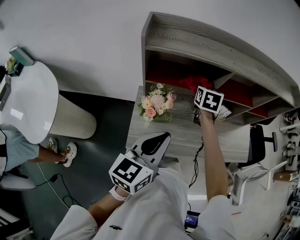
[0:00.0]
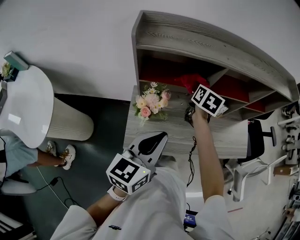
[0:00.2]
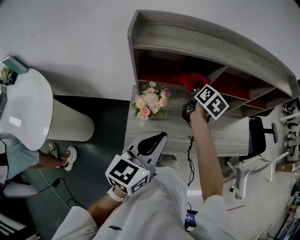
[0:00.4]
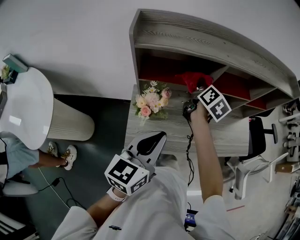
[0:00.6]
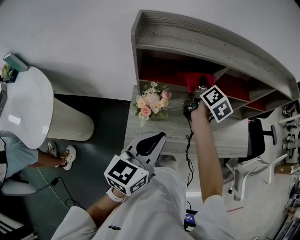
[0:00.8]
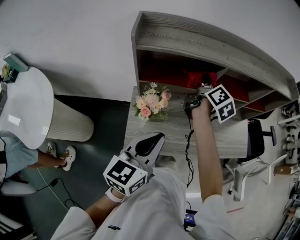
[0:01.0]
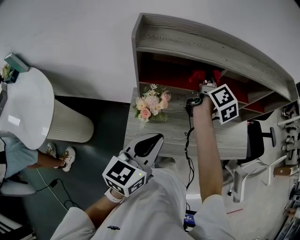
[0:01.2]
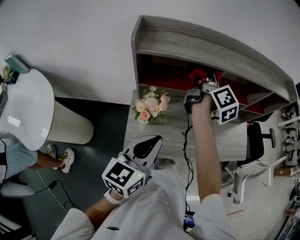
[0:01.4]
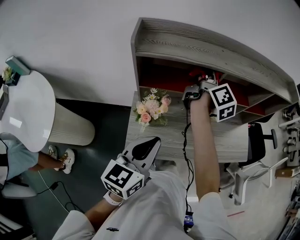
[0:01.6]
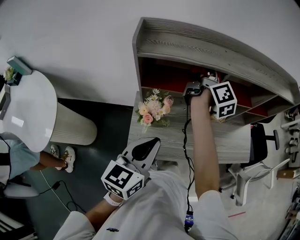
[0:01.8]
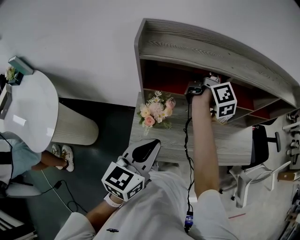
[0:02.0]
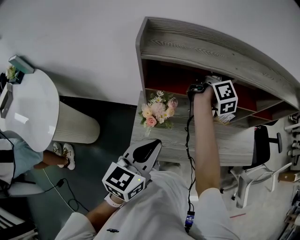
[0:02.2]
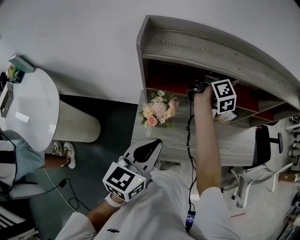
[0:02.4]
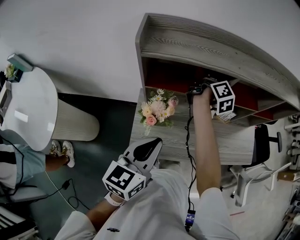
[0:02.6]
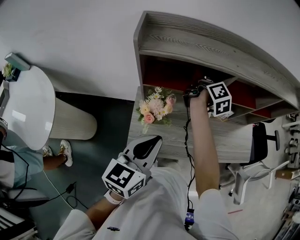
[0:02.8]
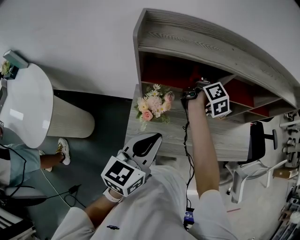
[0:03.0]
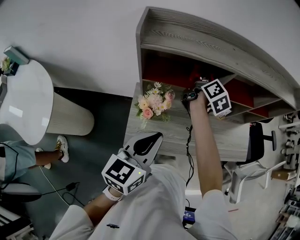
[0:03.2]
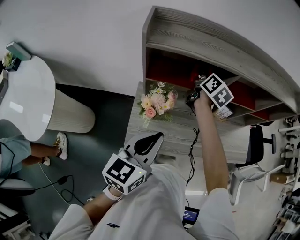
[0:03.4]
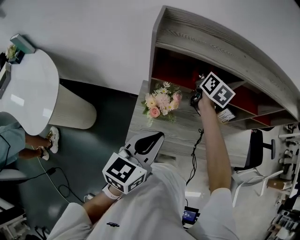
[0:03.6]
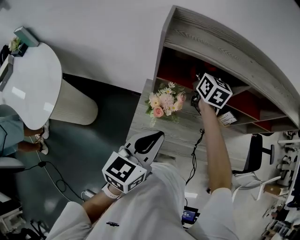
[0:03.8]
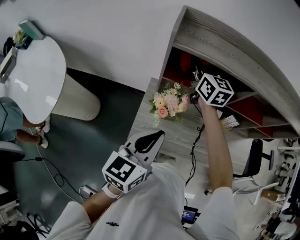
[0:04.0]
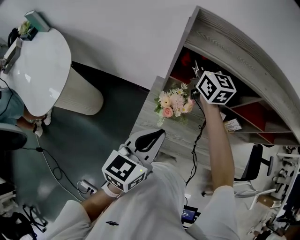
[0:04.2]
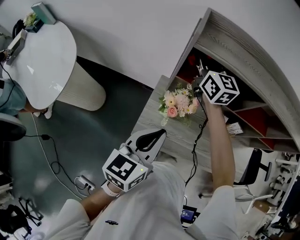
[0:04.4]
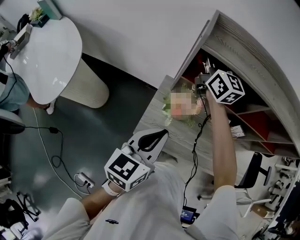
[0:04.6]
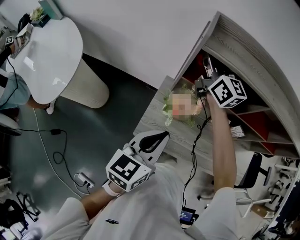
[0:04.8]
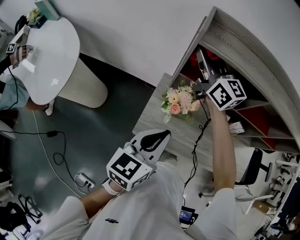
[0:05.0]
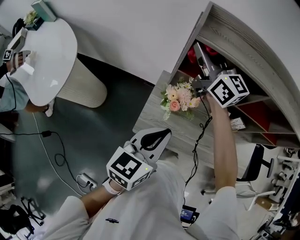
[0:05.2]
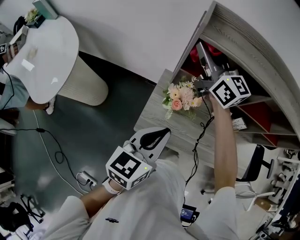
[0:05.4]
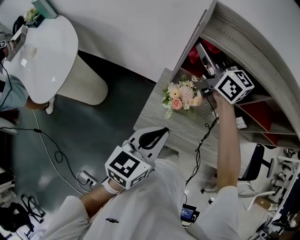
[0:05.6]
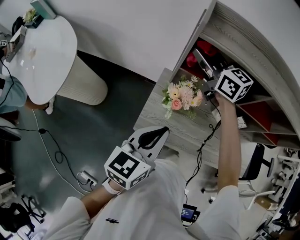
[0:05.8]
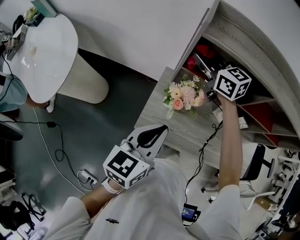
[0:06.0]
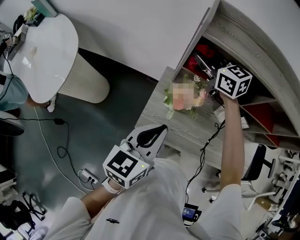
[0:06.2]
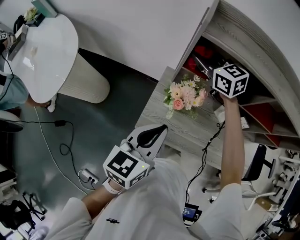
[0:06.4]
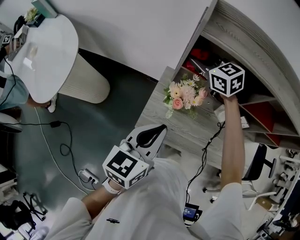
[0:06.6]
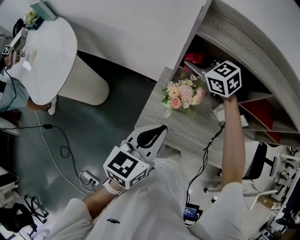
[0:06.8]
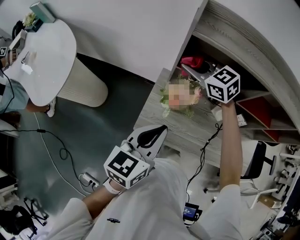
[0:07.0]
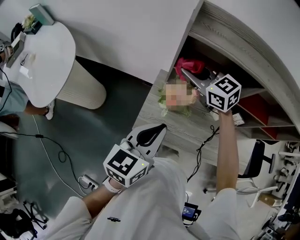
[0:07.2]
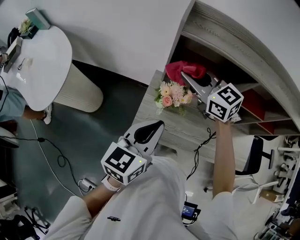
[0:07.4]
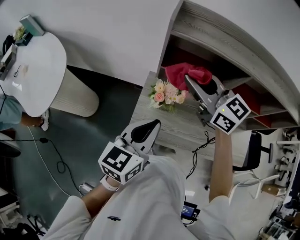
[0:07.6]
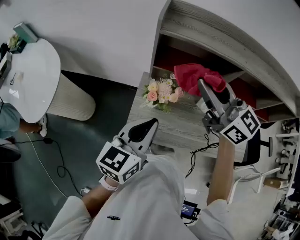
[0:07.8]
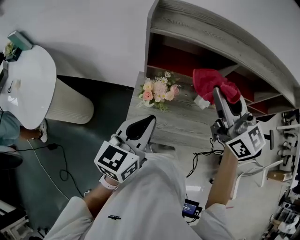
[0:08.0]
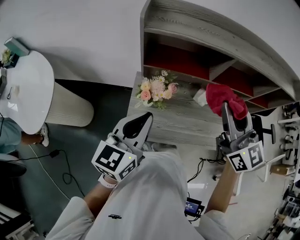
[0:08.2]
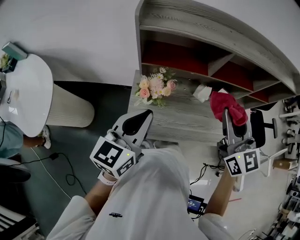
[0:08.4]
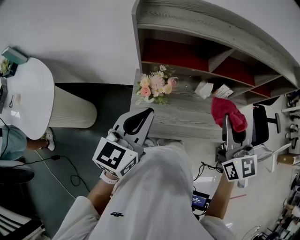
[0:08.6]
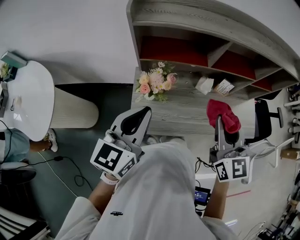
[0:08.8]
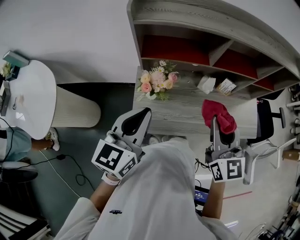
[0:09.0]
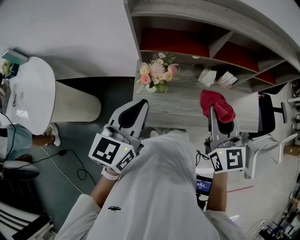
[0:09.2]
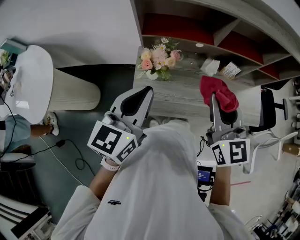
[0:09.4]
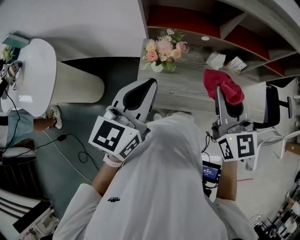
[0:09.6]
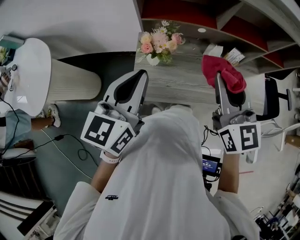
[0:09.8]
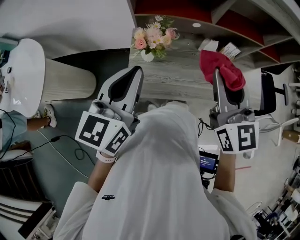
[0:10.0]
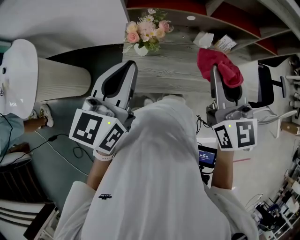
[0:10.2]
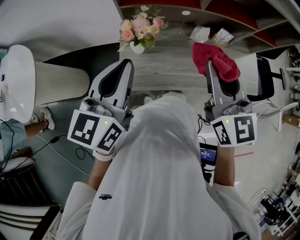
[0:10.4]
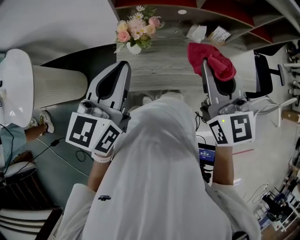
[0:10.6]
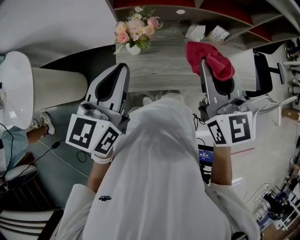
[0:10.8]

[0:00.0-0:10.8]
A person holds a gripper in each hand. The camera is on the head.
0.0 to 1.6 s: The right gripper moves upward, approximately 15 cm, and twists about 60 degrees clockwise, seen from behind.
1.6 to 3.0 s: The right gripper is displaced downward by some 10 cm.
3.0 to 4.6 s: The left gripper shifts by roughly 5 cm. Meanwhile the right gripper changes place by roughly 30 cm, and turns by roughly 70 degrees.
4.6 to 6.2 s: The right gripper travels downward by some 10 cm, and changes its angle by approximately 30 degrees.
6.2 to 7.8 s: The right gripper is displaced backward and upward by about 25 cm, and swivels about 20 degrees.
7.8 to 9.2 s: The right gripper heads backward, to the right and downward, covering approximately 20 cm, and changes its angle by about 40 degrees.
9.2 to 10.8 s: There are only small adjustments of the grippers.

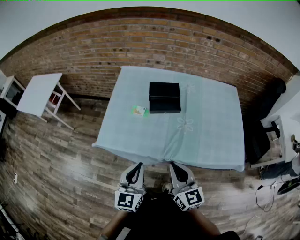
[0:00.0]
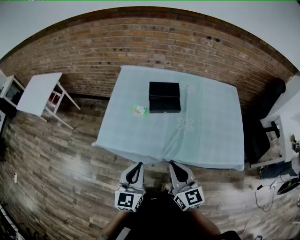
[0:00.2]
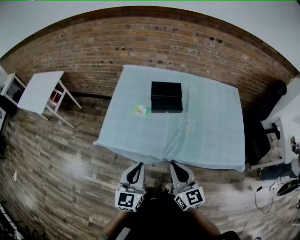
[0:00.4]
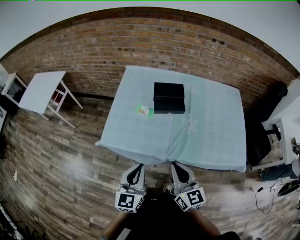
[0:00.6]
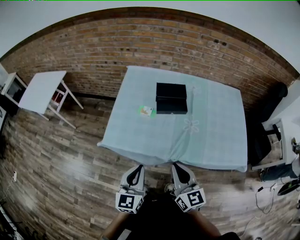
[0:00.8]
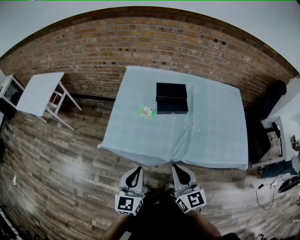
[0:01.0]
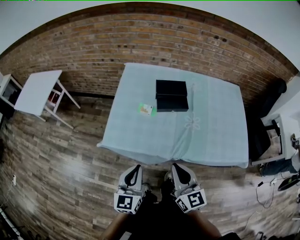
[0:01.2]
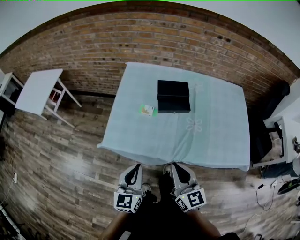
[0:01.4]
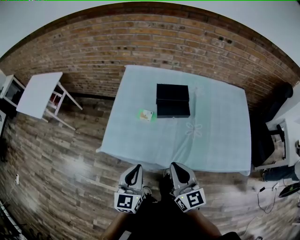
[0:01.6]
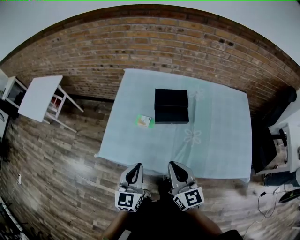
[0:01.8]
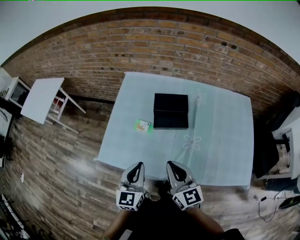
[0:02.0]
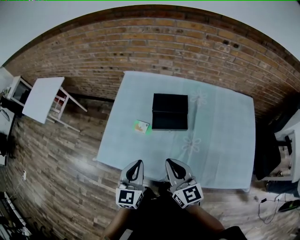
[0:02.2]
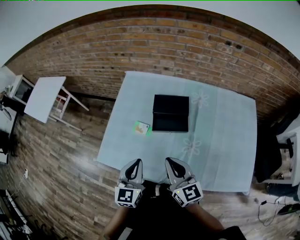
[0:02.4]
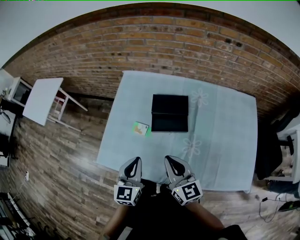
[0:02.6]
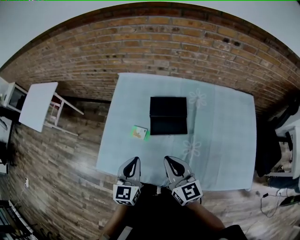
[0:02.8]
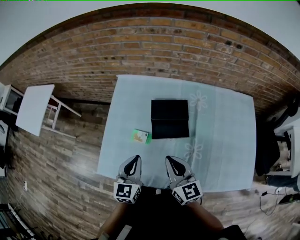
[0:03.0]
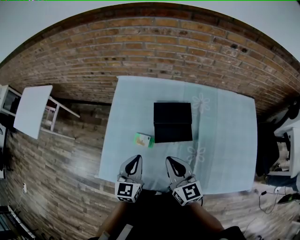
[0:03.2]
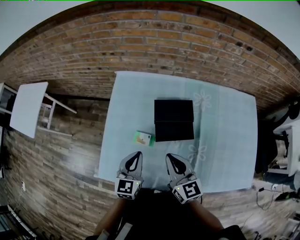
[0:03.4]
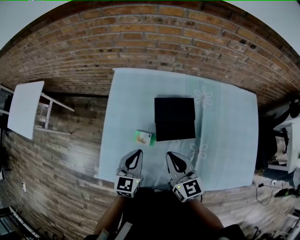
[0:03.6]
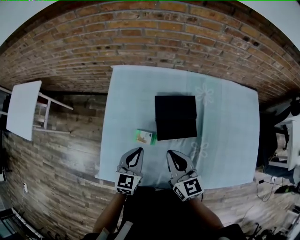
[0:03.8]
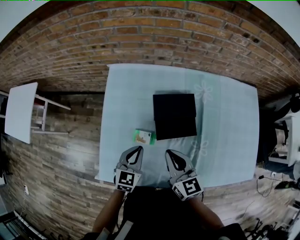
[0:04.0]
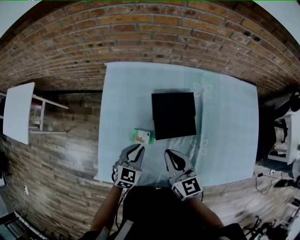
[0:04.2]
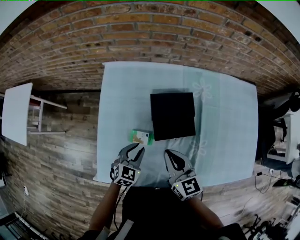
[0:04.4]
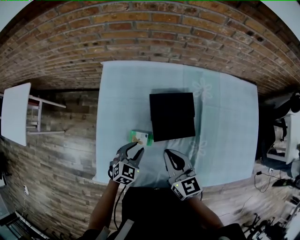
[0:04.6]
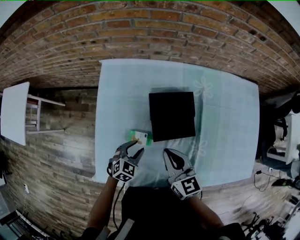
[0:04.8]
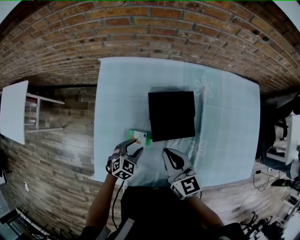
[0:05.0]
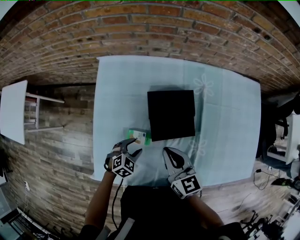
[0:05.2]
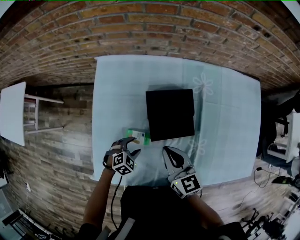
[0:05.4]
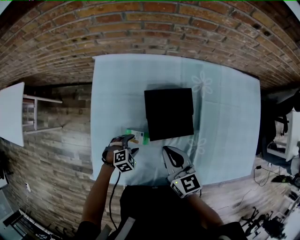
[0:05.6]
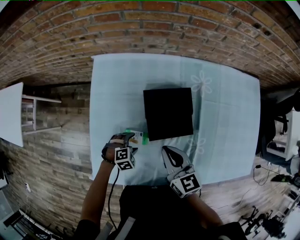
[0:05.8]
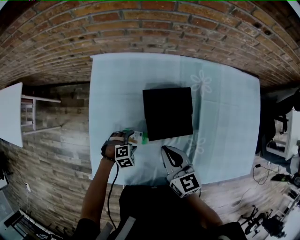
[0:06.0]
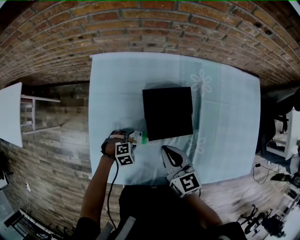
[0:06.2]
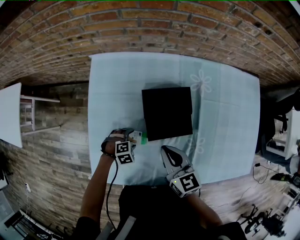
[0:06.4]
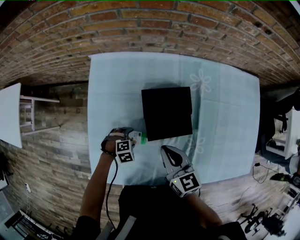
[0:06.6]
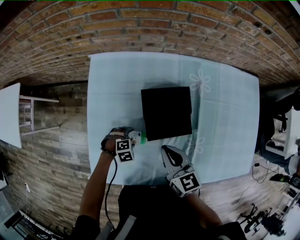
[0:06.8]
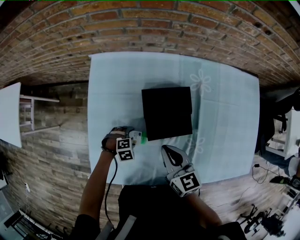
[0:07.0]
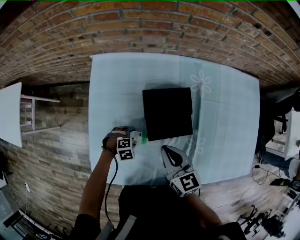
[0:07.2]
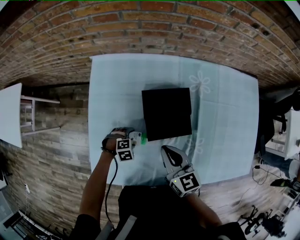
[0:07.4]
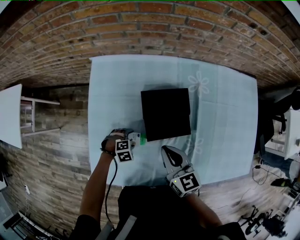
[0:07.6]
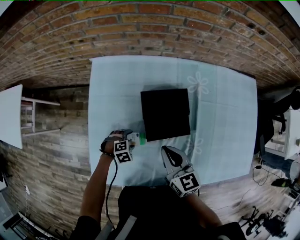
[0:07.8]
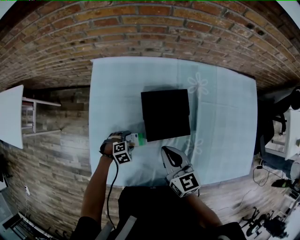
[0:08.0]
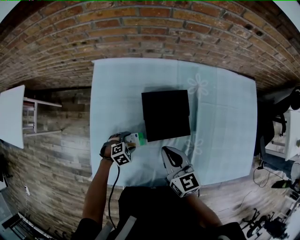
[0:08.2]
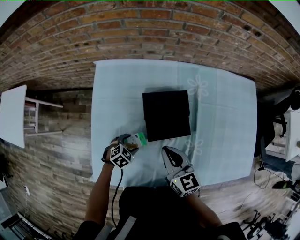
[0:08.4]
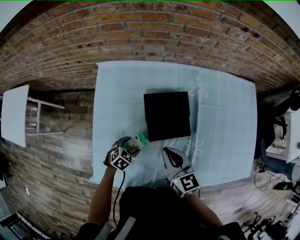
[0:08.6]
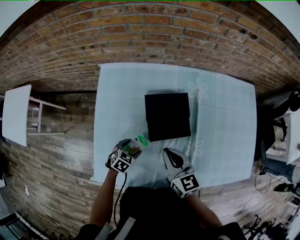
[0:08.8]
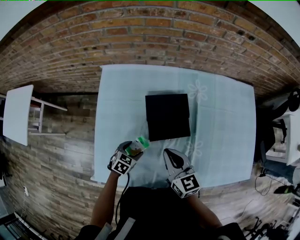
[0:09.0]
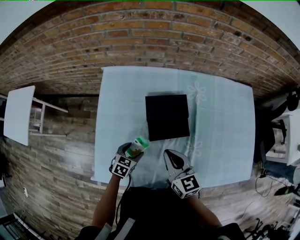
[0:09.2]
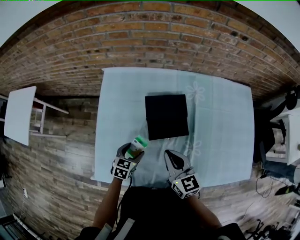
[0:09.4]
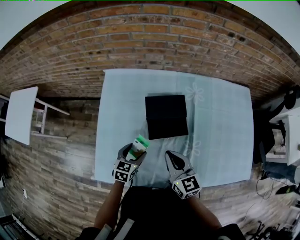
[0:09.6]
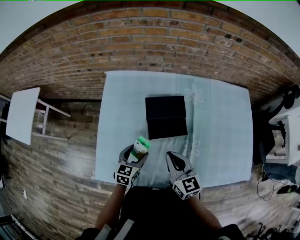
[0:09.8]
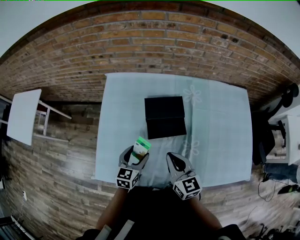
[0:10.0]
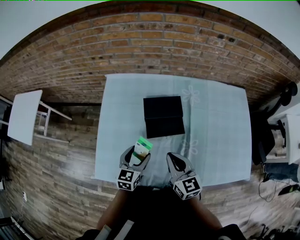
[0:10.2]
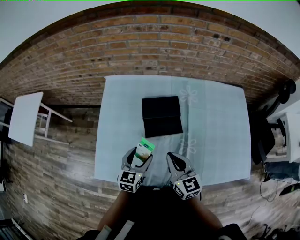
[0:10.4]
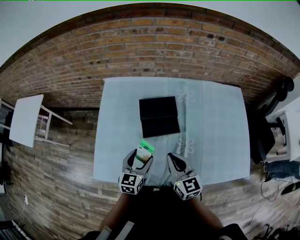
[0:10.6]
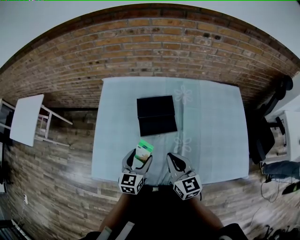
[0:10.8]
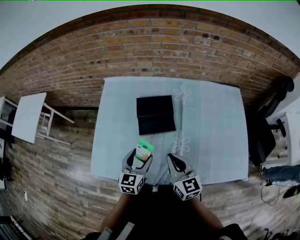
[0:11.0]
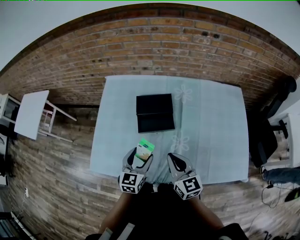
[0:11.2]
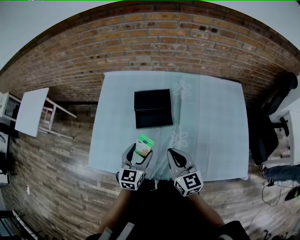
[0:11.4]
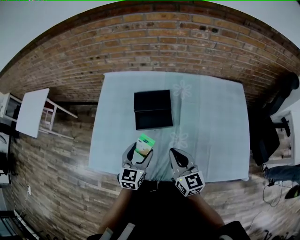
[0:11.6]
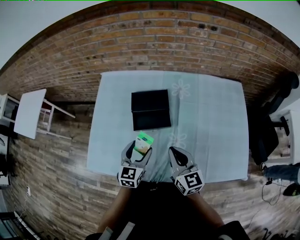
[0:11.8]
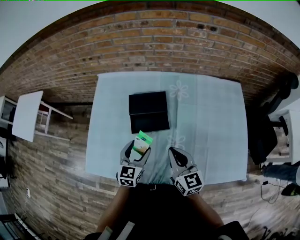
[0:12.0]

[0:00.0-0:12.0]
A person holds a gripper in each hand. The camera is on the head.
0.0 to 1.6 s: The grippers both shift forward by about 5 cm.
1.6 to 3.0 s: The grippers both shift forward by roughly 20 cm.
3.0 to 4.4 s: The right gripper is displaced forward and downward by about 10 cm. Meanwhile the left gripper goes approximately 20 cm downward and forward, and rotates about 40 degrees.
4.4 to 6.0 s: The right gripper changes place by approximately 5 cm. Meanwhile the left gripper is displaced downward by some 15 cm, tips its fingers downward by some 30 degrees, and opens its fingers.
6.0 to 7.6 s: The grippers move only a little.
7.6 to 9.0 s: The left gripper moves upward, roughly 10 cm, and rolls counterclockwise, seen from behind, by roughly 40 degrees.
9.0 to 10.4 s: The left gripper is displaced upward by approximately 15 cm, and swivels roughly 40 degrees. The right gripper travels backward and to the right by about 10 cm.
10.4 to 12.0 s: The two grippers go roughly 10 cm to the right.

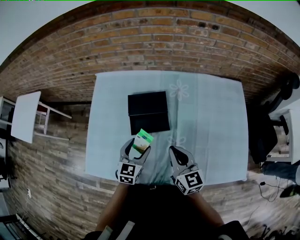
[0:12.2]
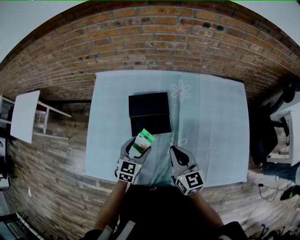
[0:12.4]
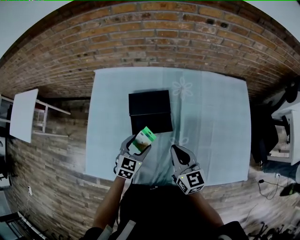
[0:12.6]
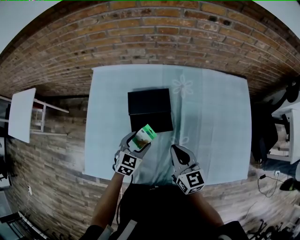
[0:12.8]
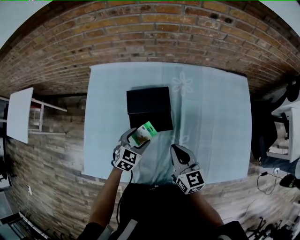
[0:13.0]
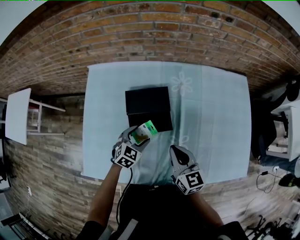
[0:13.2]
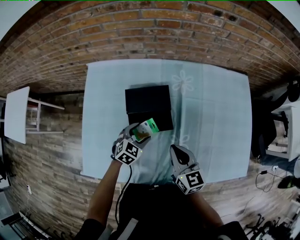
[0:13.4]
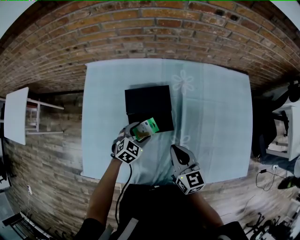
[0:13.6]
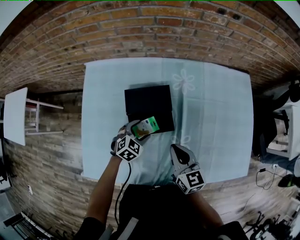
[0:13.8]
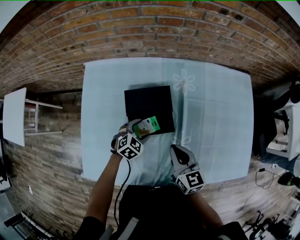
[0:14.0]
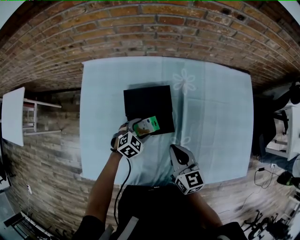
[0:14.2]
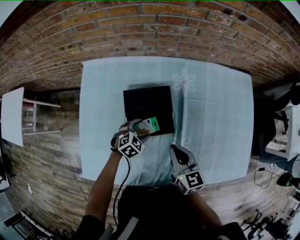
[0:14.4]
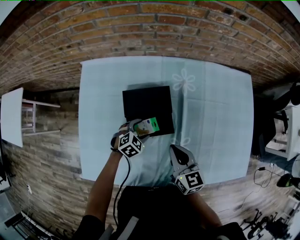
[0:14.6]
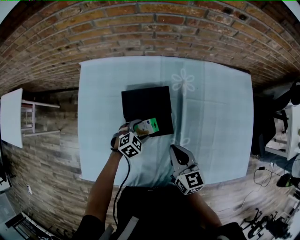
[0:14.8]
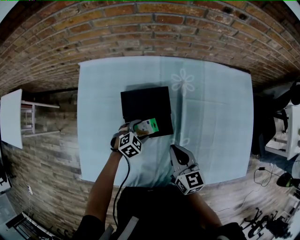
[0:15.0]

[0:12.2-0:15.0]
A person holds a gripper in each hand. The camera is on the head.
12.2 to 13.6 s: The right gripper goes roughly 5 cm downward. Meanwhile the left gripper moves downward and forward, roughly 15 cm, and turns by about 30 degrees.
13.6 to 15.0 s: The left gripper is displaced downward by approximately 5 cm.
